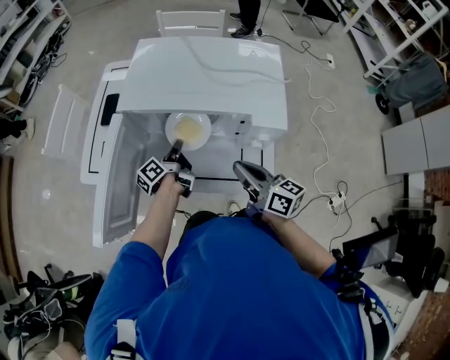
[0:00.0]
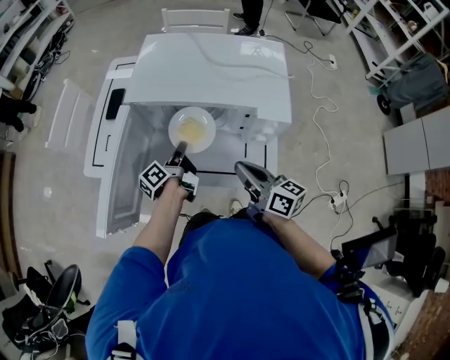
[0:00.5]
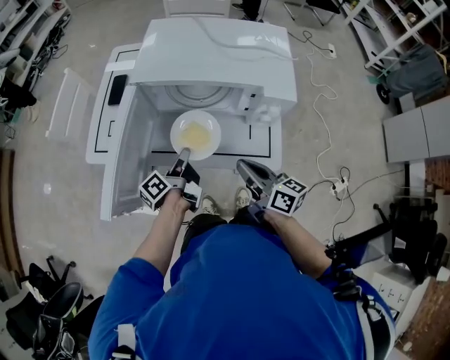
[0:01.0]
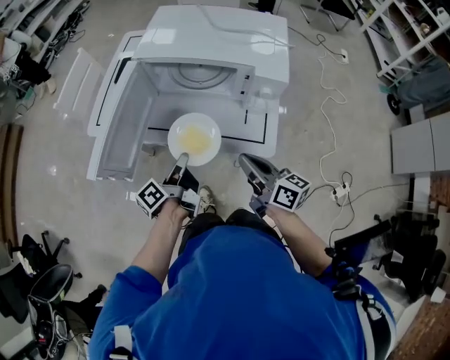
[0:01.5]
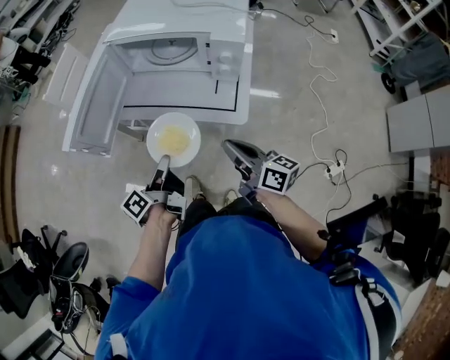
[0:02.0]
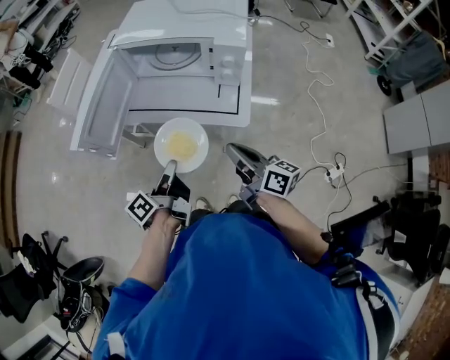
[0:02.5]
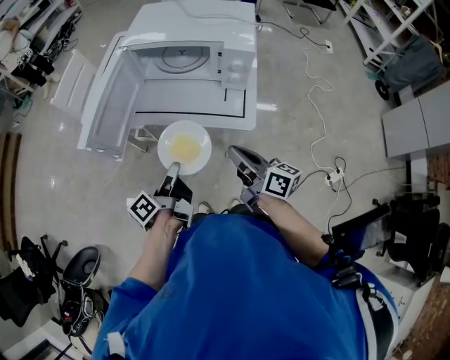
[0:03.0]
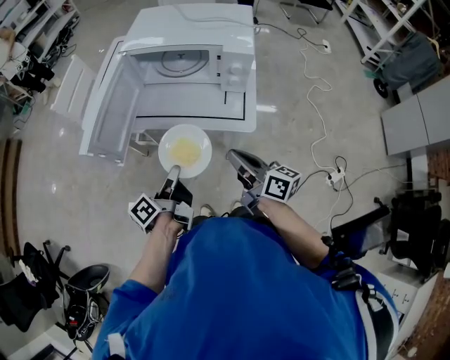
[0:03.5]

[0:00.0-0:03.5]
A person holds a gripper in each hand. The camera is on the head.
0:00.0 to 0:02.0: The right gripper shifts some 20 cm backward. Meanwhile the left gripper is displaced backward by approximately 35 cm.
0:02.0 to 0:03.5: The grippers stay close to where they were, moving slightly.

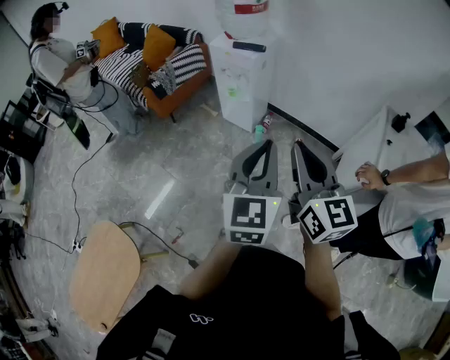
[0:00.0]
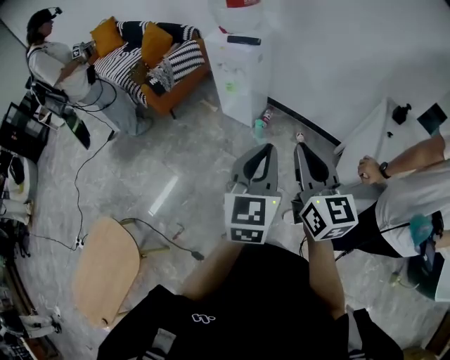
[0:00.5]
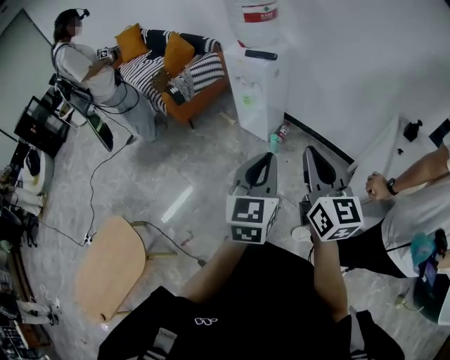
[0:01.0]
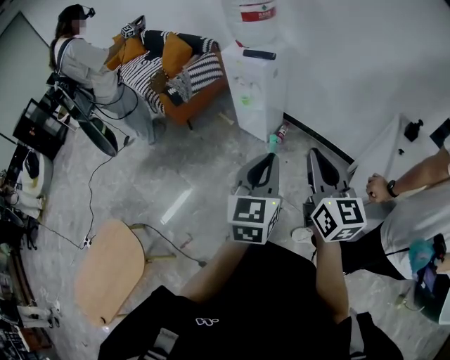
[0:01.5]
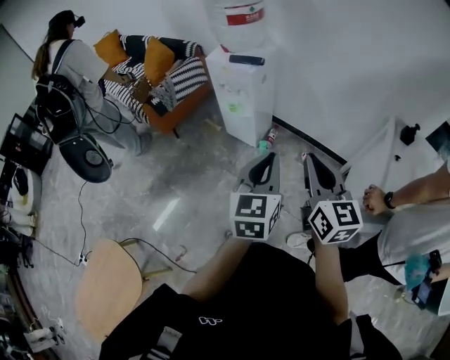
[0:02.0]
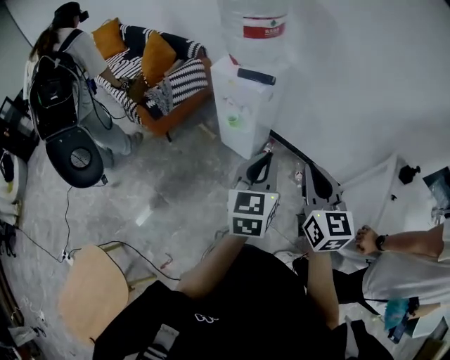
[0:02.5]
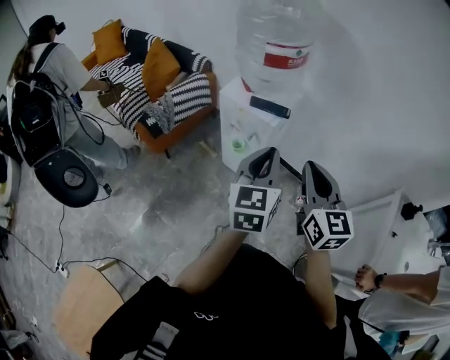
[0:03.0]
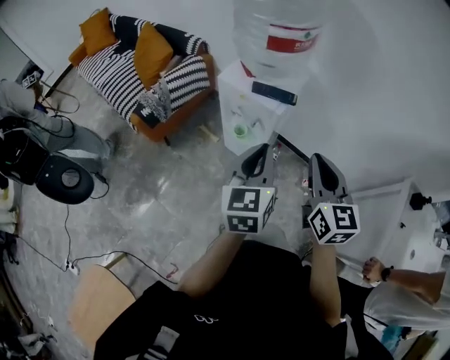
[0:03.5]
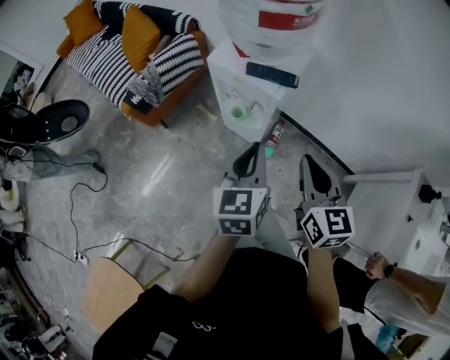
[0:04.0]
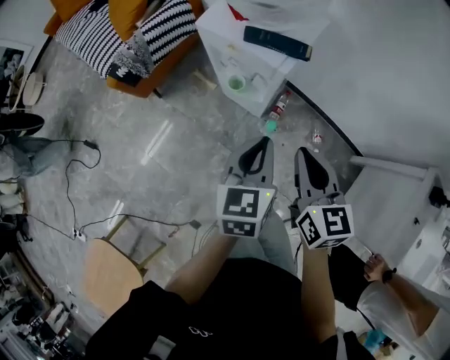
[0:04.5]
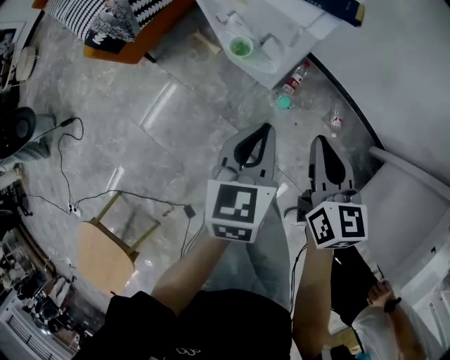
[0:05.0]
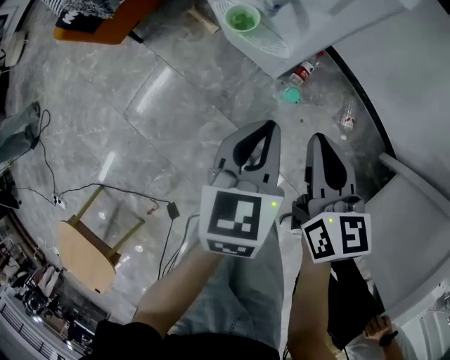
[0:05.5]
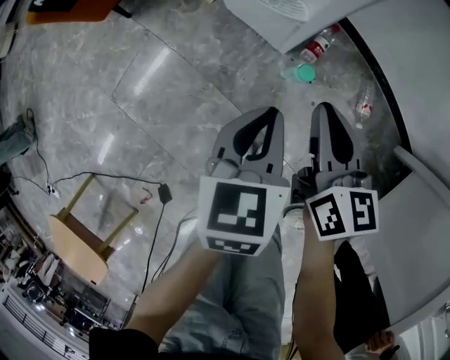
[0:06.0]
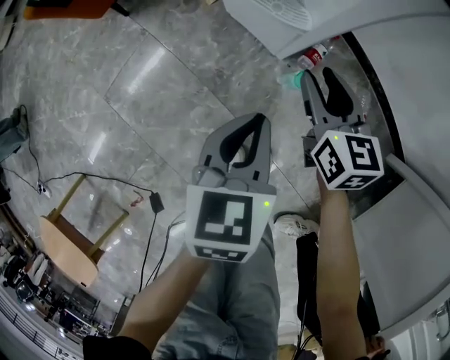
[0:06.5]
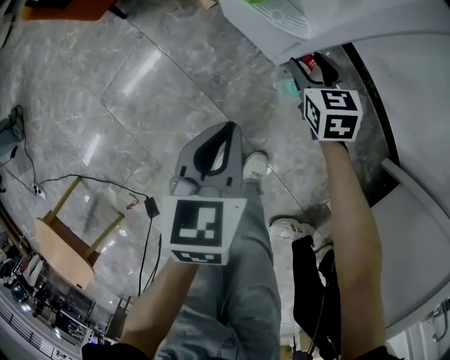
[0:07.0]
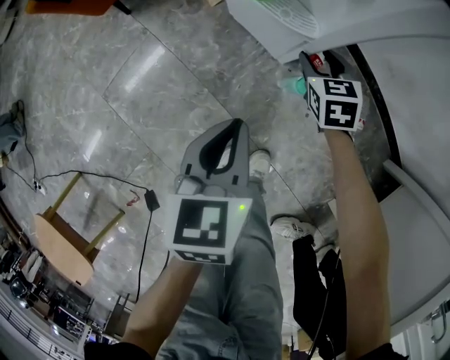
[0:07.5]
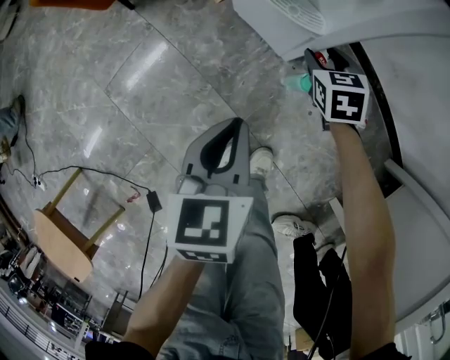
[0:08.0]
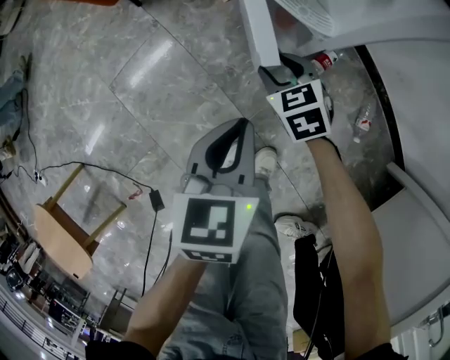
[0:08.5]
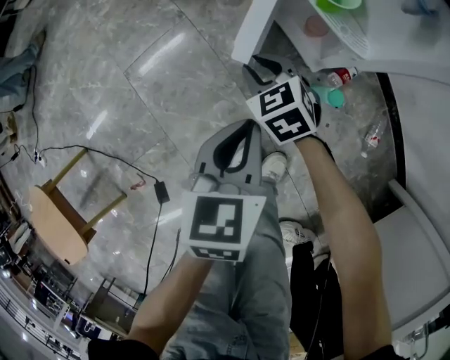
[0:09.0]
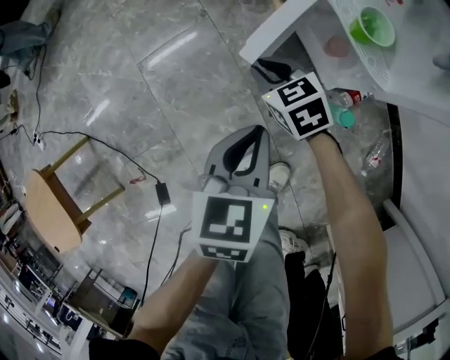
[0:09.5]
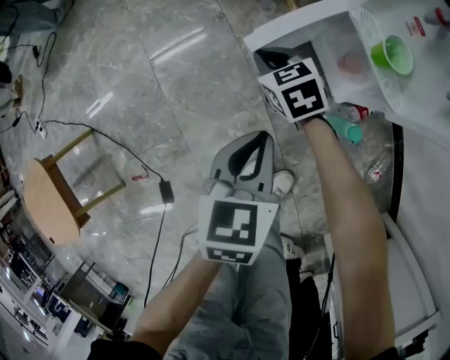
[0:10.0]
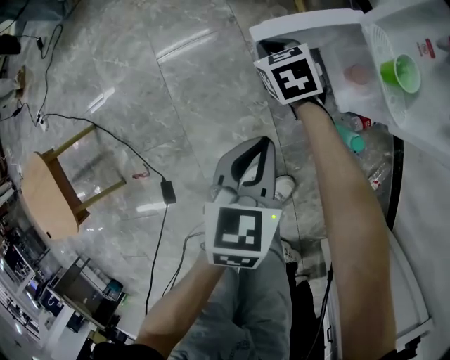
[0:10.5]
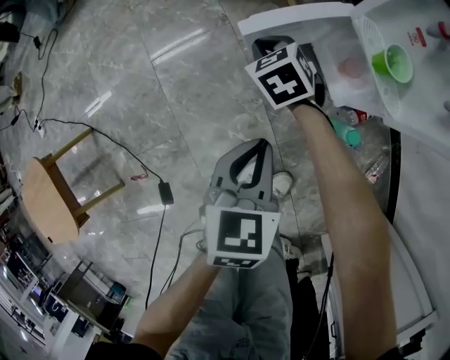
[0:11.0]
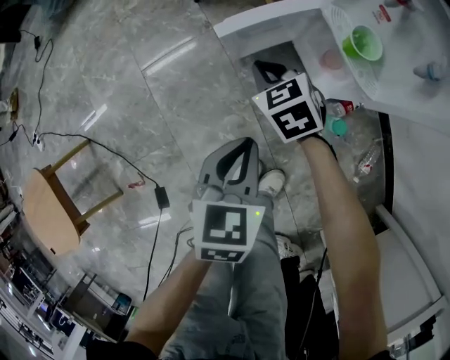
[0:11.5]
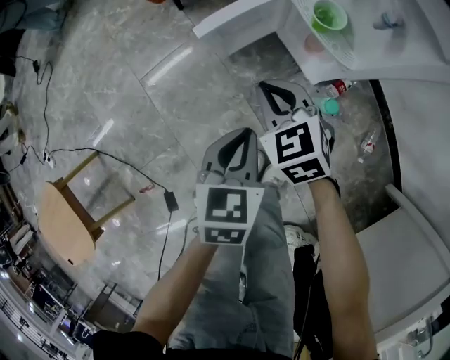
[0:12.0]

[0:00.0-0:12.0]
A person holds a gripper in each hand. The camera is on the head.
0:00.0 to 0:02.0: The right gripper shifts about 15 cm forward, to the right and downward. The left gripper travels forward and downward by approximately 15 cm.
0:02.0 to 0:04.0: Both grippers move forward, about 35 cm.
0:04.0 to 0:06.0: The grippers both shift downward by roughly 50 cm. The right gripper swivels roughly 20 degrees. Meanwhile the left gripper swivels roughly 20 degrees.
0:06.0 to 0:08.0: The left gripper shifts approximately 5 cm to the left. Meanwhile the right gripper moves downward and forward, about 20 cm, turns by some 40 degrees, and opens its fingers.
0:08.0 to 0:10.0: The left gripper ends up about 10 cm from where it was. The right gripper ends up some 35 cm from where it was, turns by some 40 degrees, and closes up.
0:10.0 to 0:12.0: The right gripper is displaced upward, backward and to the right by about 20 cm. Meanwhile the left gripper changes place by some 5 cm.

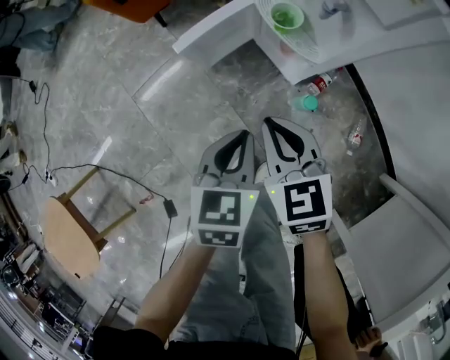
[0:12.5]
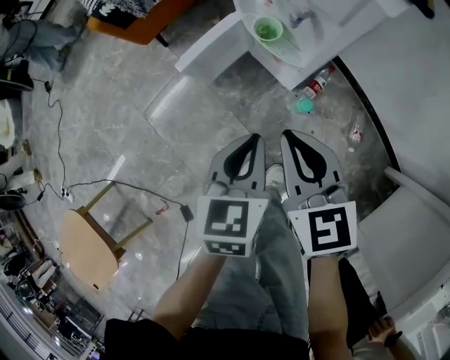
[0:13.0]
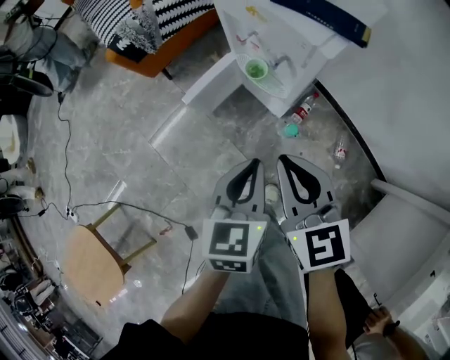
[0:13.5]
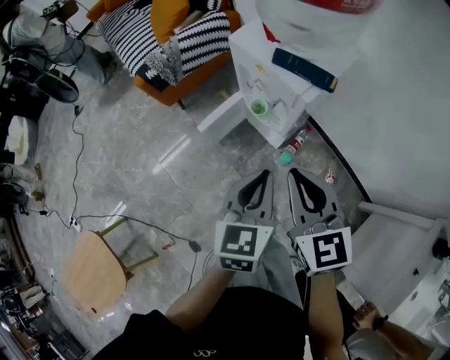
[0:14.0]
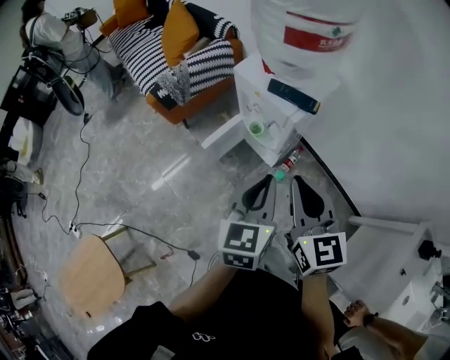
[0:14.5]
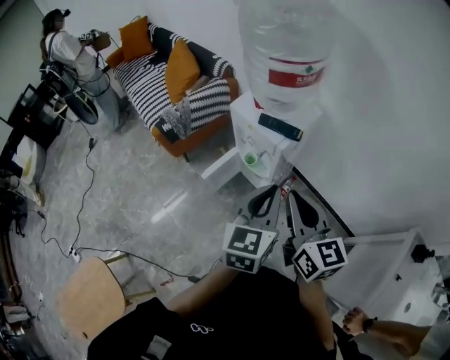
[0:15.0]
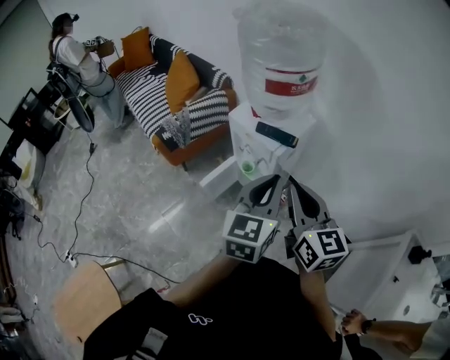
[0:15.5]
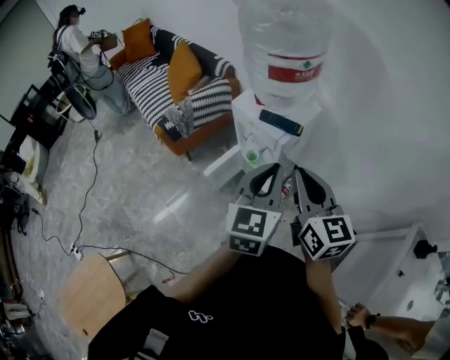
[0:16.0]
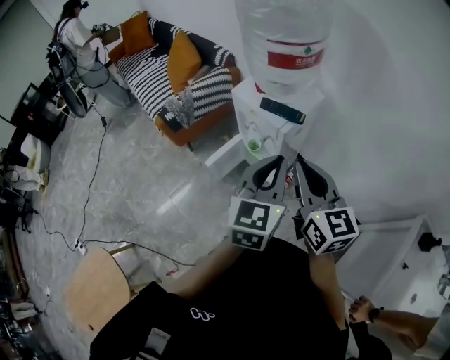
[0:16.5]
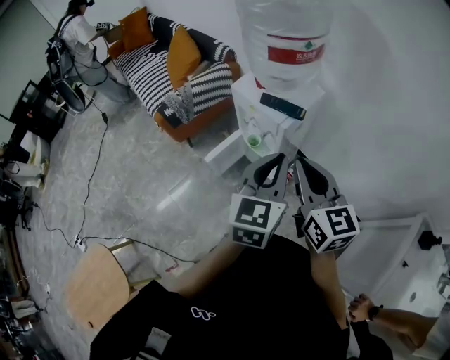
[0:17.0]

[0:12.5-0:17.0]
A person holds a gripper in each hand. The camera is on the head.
0:12.5 to 0:14.5: The two grippers go approximately 40 cm upward. The left gripper swivels some 20 degrees. The right gripper changes its angle by approximately 30 degrees.
0:14.5 to 0:17.0: Both grippers travel together upward, some 10 cm.

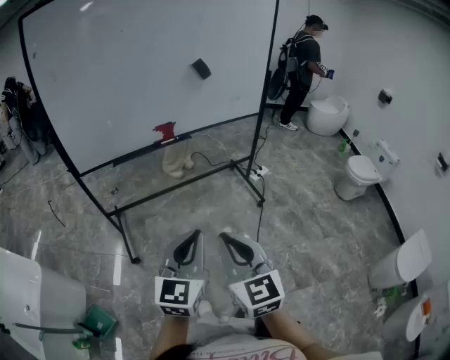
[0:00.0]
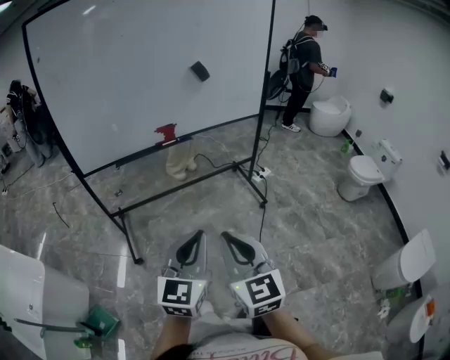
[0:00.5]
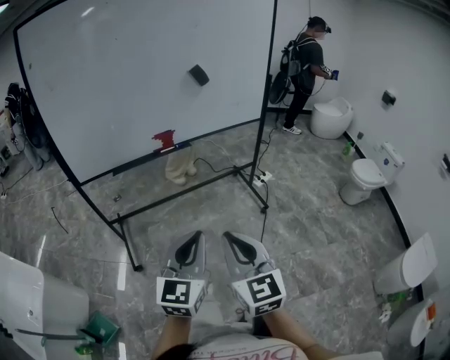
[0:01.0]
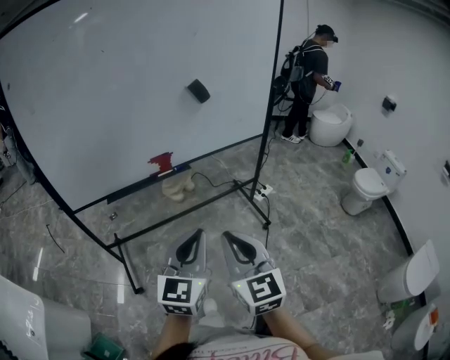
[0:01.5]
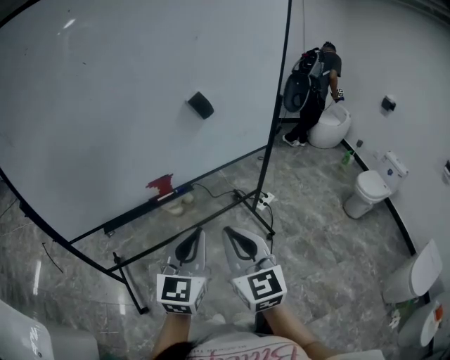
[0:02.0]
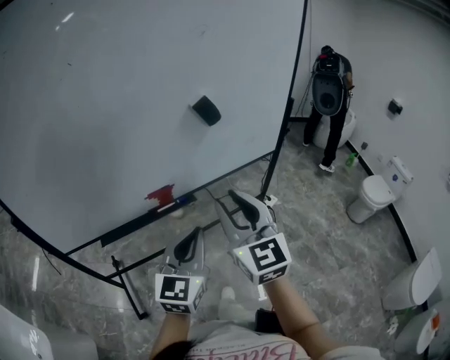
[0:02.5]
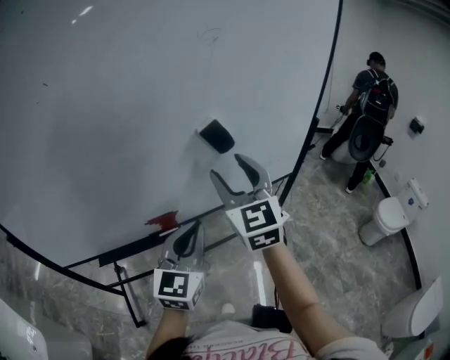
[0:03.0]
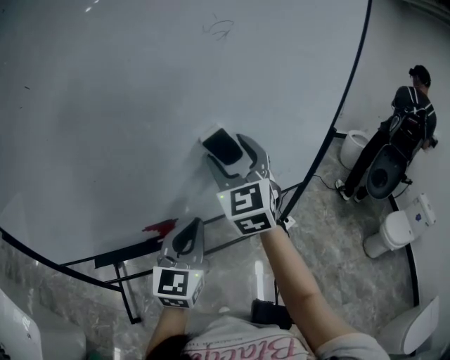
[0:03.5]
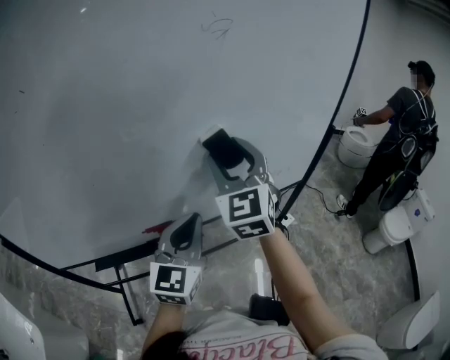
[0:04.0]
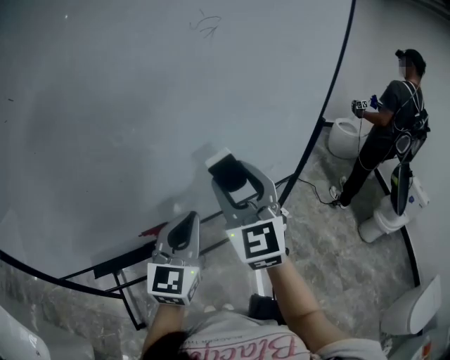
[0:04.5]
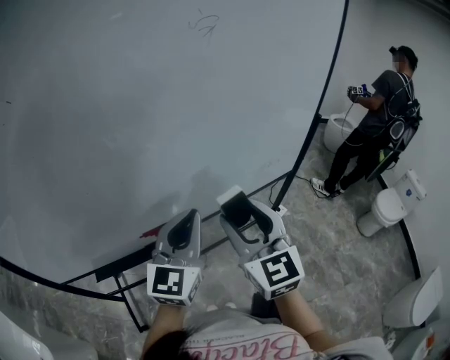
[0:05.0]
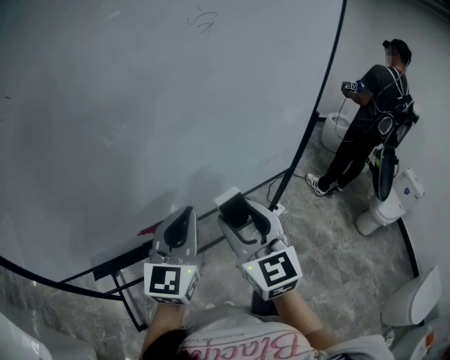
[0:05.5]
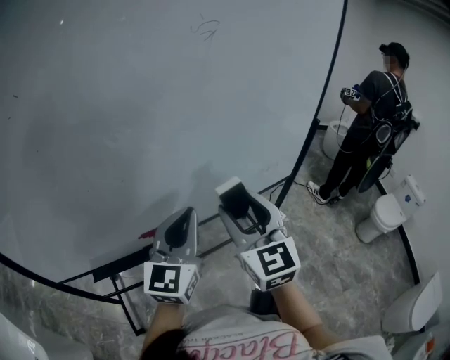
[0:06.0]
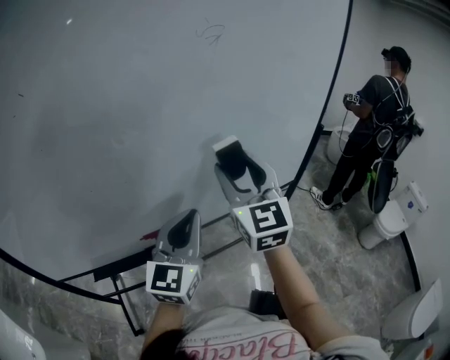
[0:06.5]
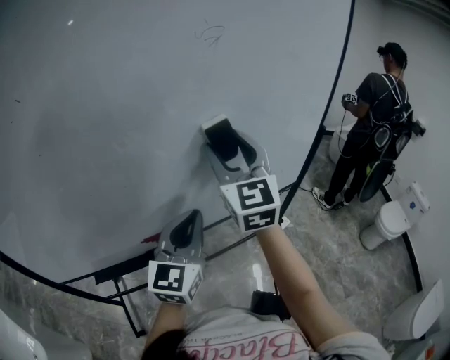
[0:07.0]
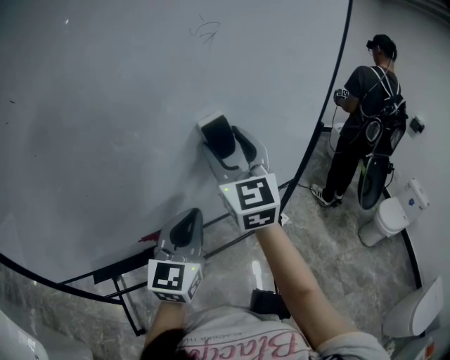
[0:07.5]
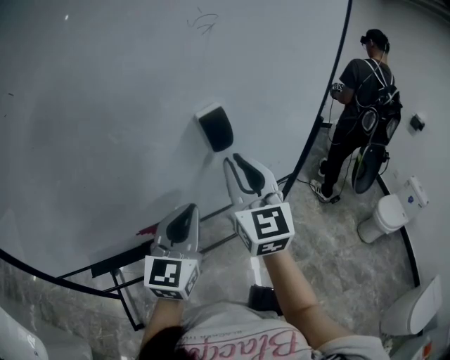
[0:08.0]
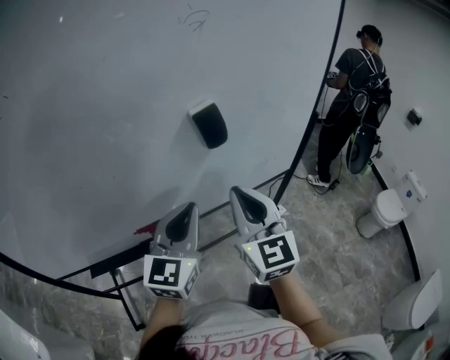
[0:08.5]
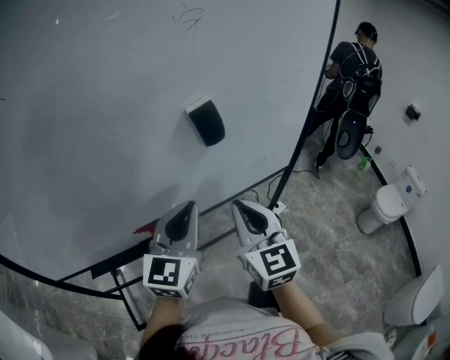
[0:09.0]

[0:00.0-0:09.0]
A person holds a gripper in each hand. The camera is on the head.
0:00.0 to 0:02.0: Both grippers travel together forward, some 30 cm.
0:02.0 to 0:04.5: Both grippers move forward, roughly 25 cm. The right gripper opens up.
0:04.5 to 0:07.0: The right gripper is displaced forward by roughly 5 cm.
0:07.0 to 0:09.0: The right gripper moves downward and backward, roughly 20 cm, and closes up.
